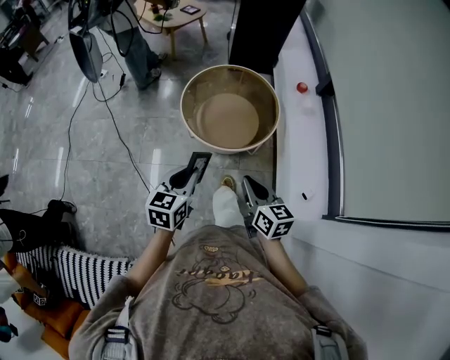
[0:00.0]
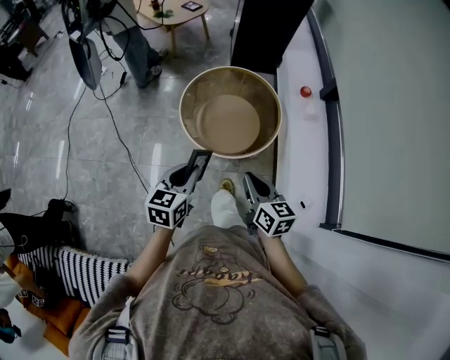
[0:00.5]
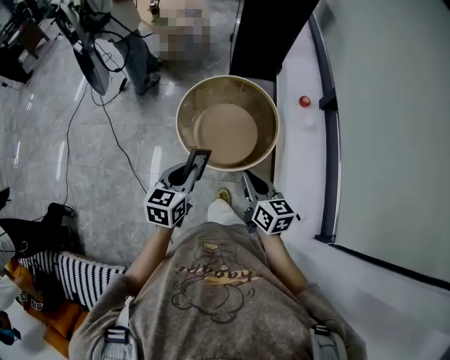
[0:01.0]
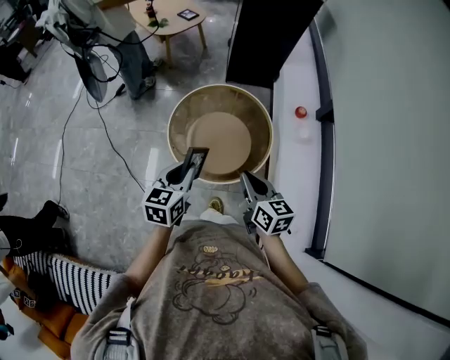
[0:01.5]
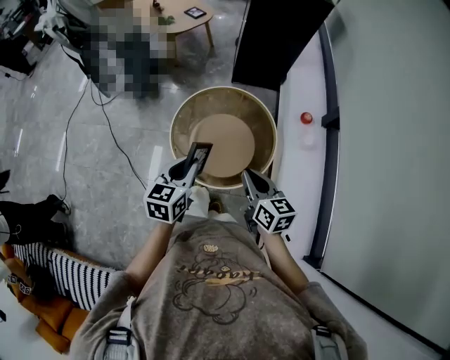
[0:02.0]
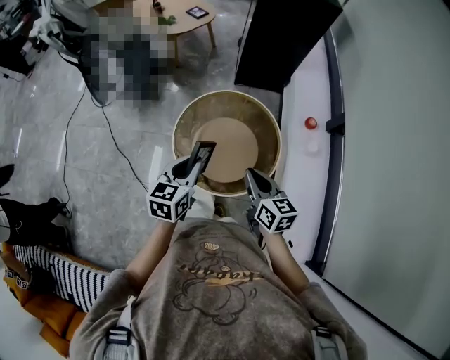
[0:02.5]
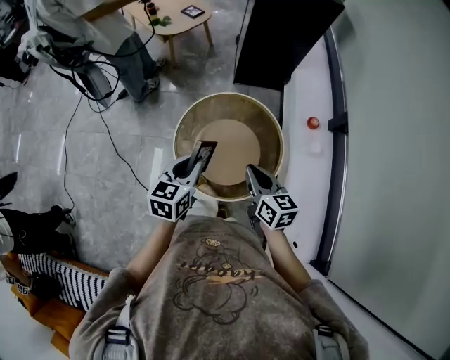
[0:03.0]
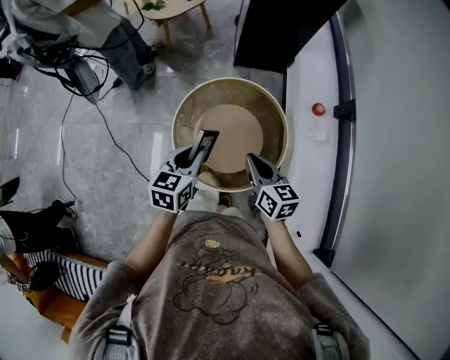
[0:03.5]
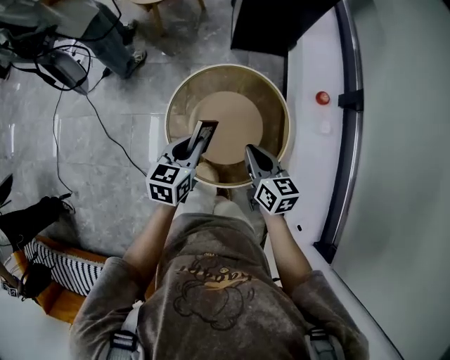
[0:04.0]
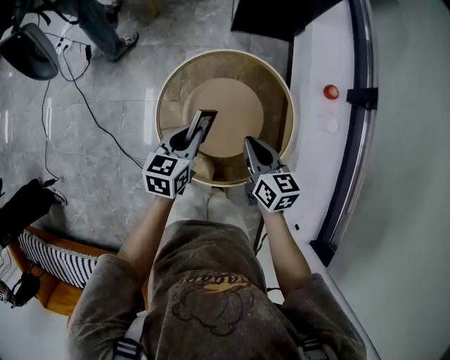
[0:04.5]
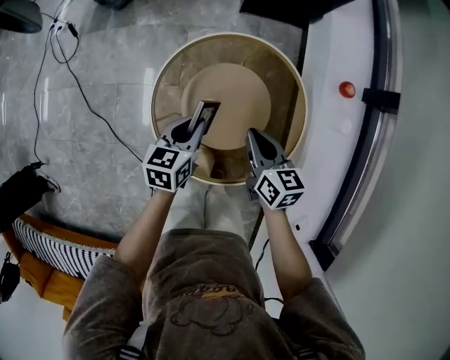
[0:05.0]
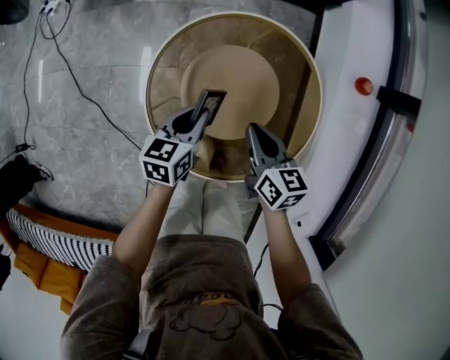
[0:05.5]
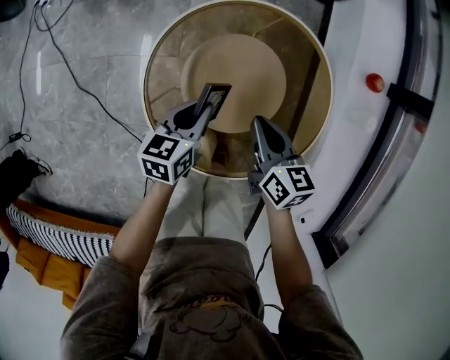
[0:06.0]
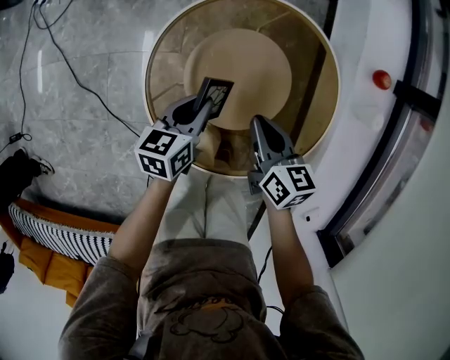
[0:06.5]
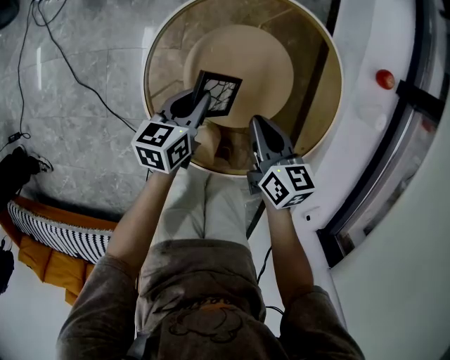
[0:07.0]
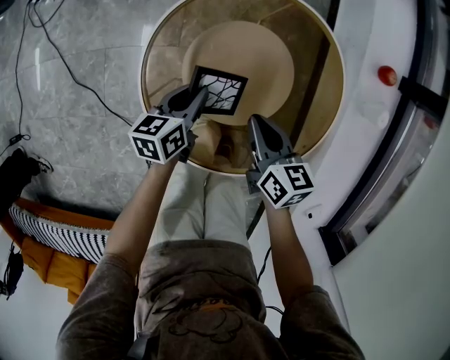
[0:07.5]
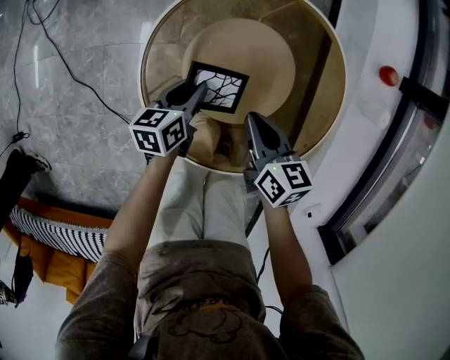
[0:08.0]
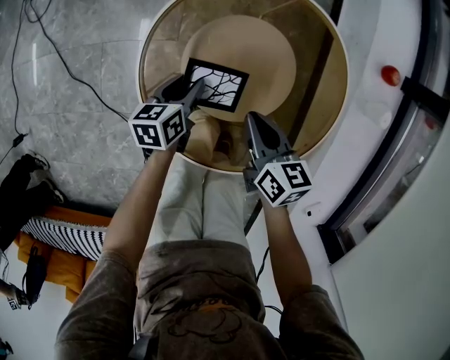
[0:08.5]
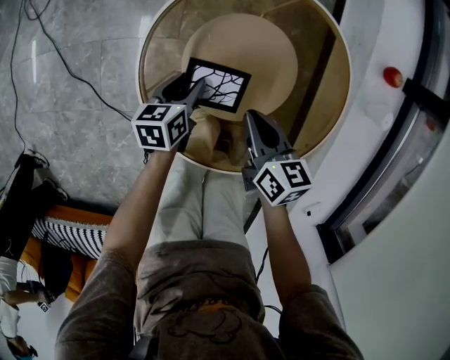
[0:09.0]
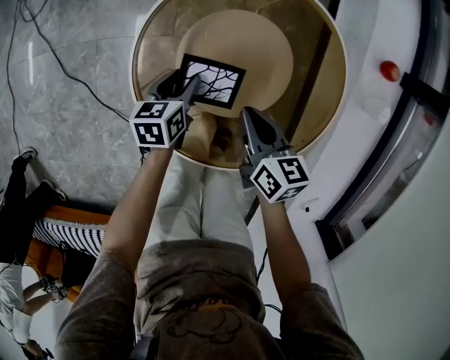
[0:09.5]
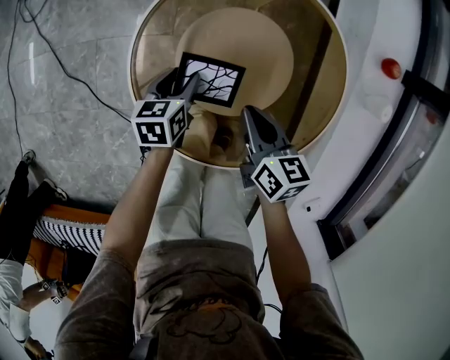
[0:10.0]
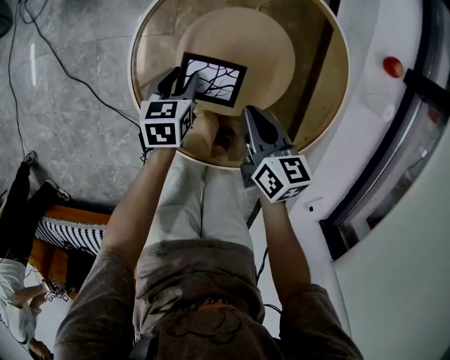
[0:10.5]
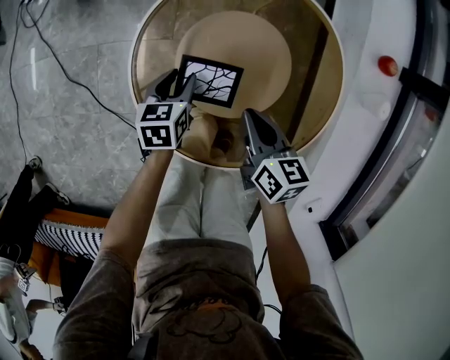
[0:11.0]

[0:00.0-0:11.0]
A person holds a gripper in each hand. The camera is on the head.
0:00.0 to 0:02.0: The two grippers go roughly 25 cm forward.
0:02.0 to 0:03.5: Both grippers move forward and downward, approximately 15 cm.
0:03.5 to 0:05.5: The left gripper shifts about 25 cm downward; the right gripper shifts approximately 25 cm downward and forward.
0:05.5 to 0:07.5: The grippers both shift downward by roughly 5 cm.
0:07.5 to 0:09.0: The left gripper goes some 5 cm downward, and opens up.
0:09.0 to 0:11.0: The grippers stay close to where they were, moving slightly.

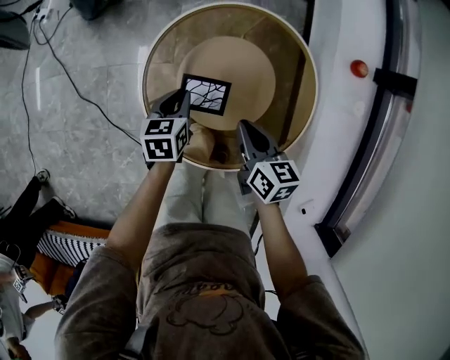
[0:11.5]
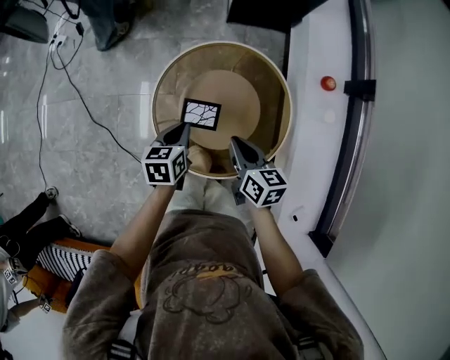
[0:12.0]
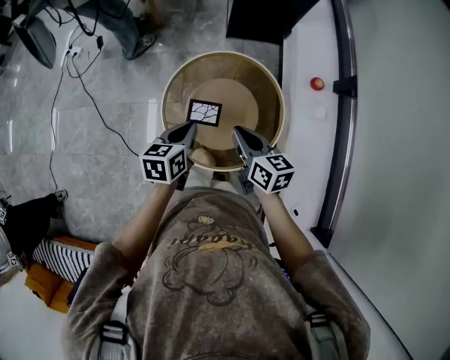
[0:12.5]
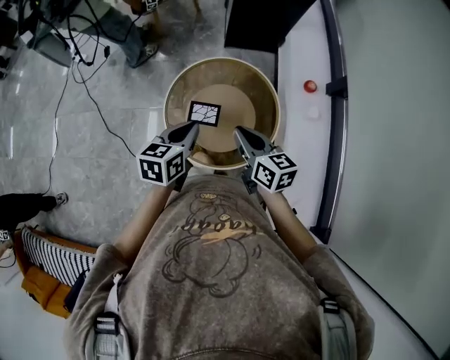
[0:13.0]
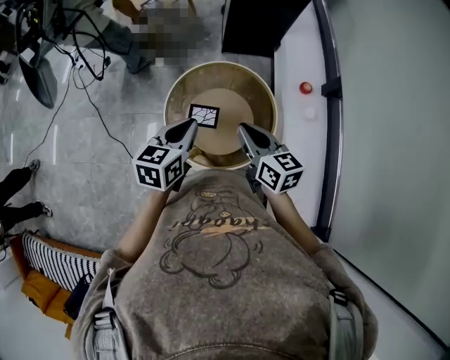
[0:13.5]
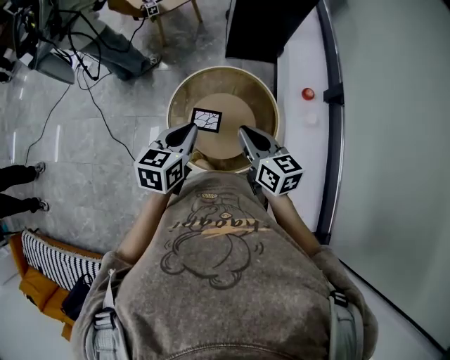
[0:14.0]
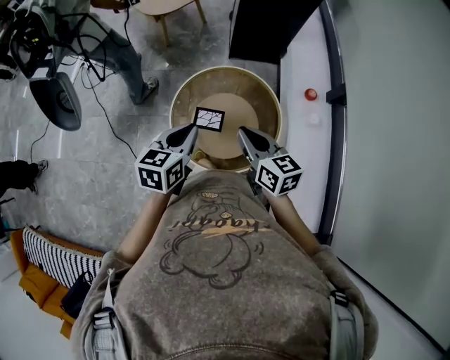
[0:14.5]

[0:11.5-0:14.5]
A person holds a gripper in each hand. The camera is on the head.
0:11.5 to 0:13.0: The left gripper heads upward and backward, covering some 35 cm. The right gripper shifts roughly 25 cm upward.
0:13.0 to 0:14.5: The left gripper shifts by about 5 cm.

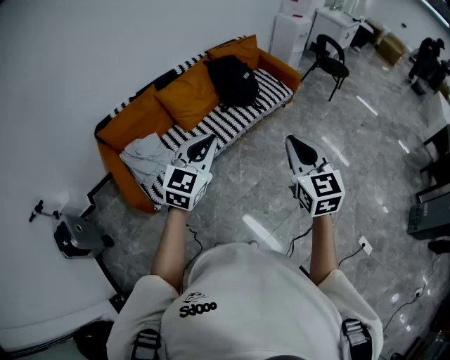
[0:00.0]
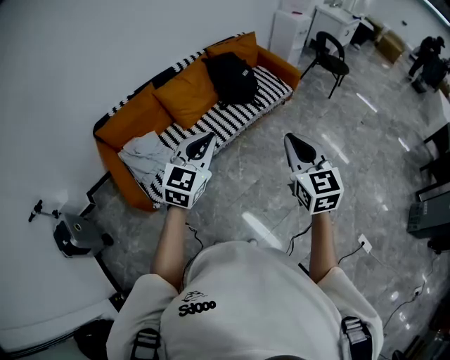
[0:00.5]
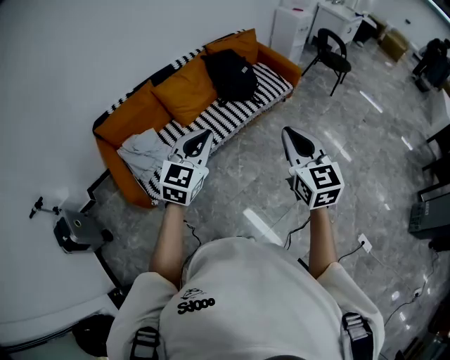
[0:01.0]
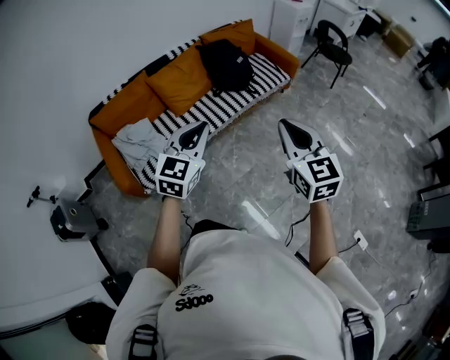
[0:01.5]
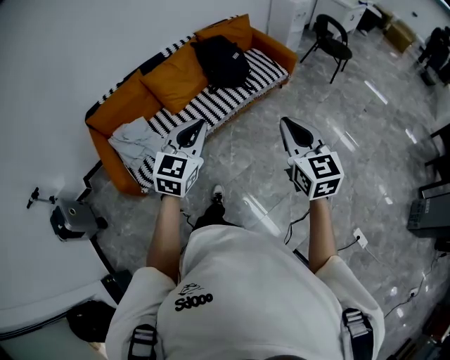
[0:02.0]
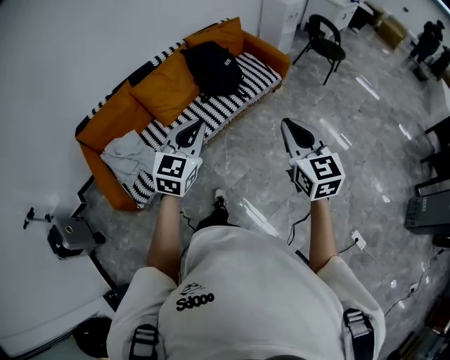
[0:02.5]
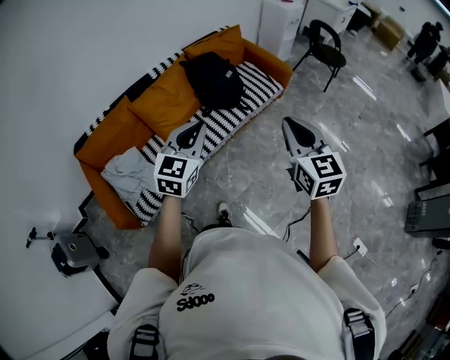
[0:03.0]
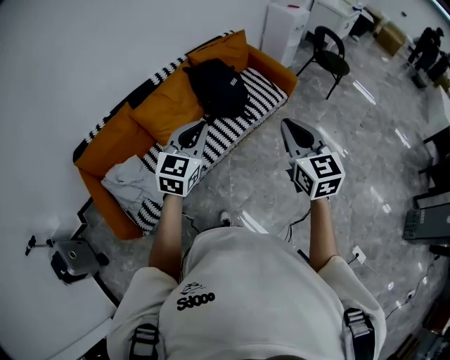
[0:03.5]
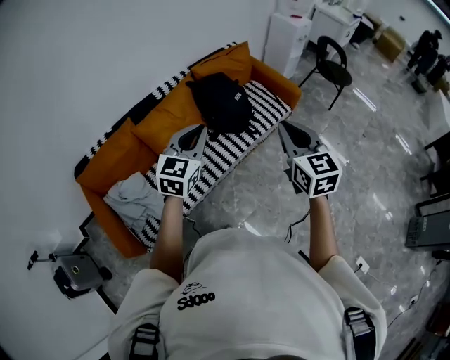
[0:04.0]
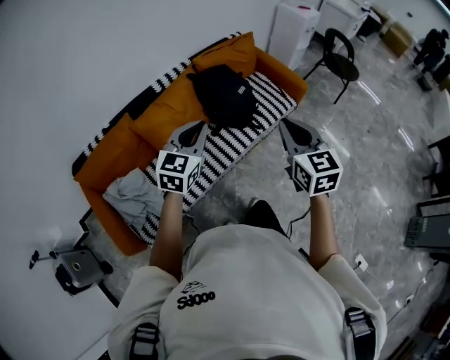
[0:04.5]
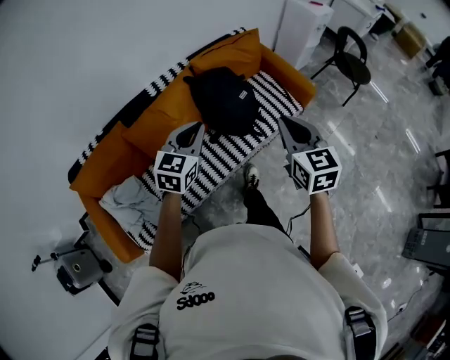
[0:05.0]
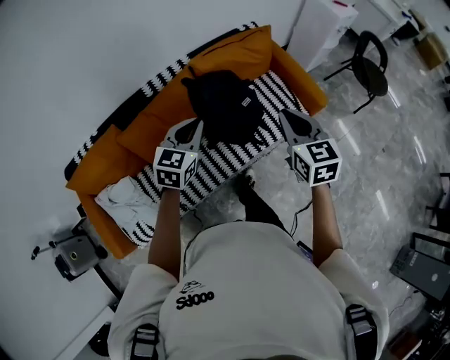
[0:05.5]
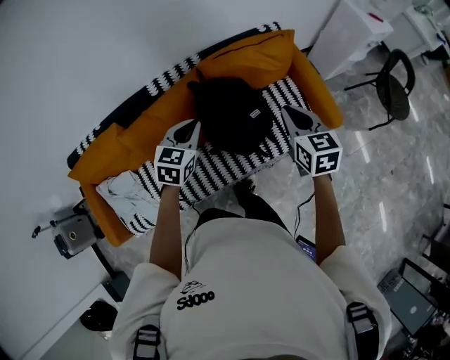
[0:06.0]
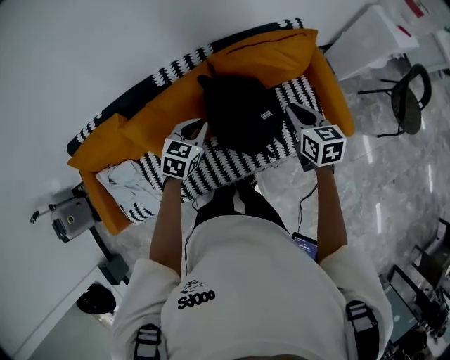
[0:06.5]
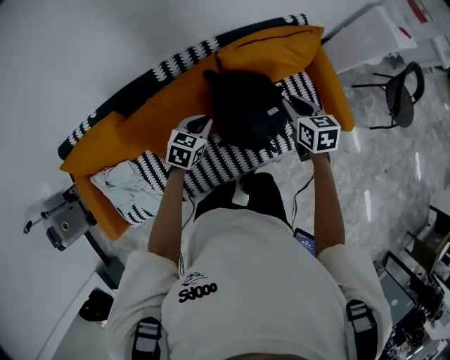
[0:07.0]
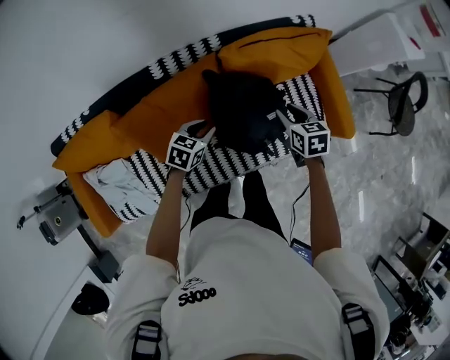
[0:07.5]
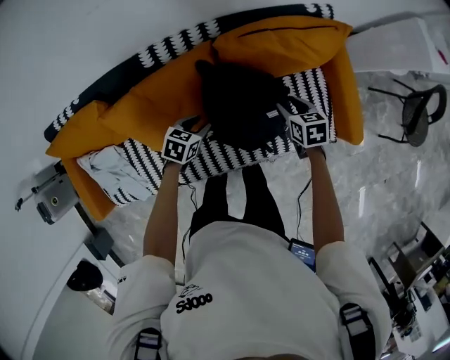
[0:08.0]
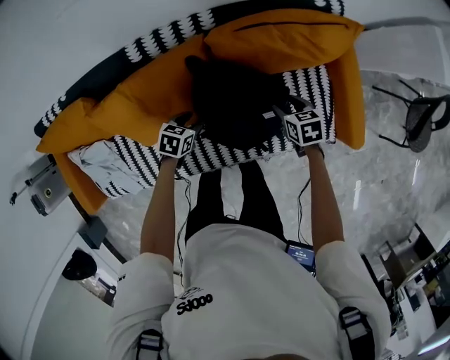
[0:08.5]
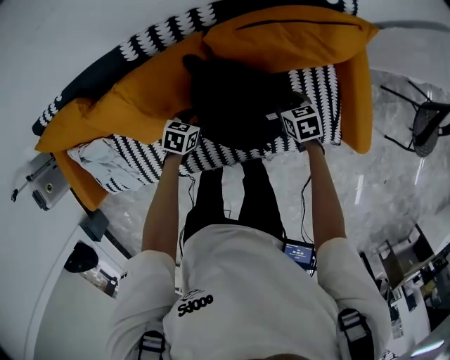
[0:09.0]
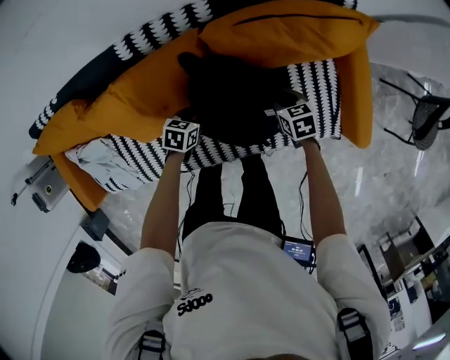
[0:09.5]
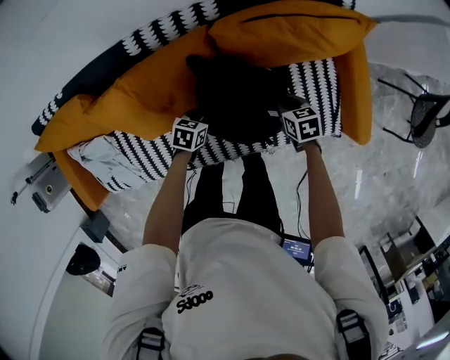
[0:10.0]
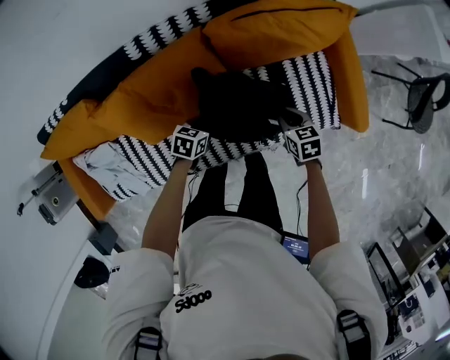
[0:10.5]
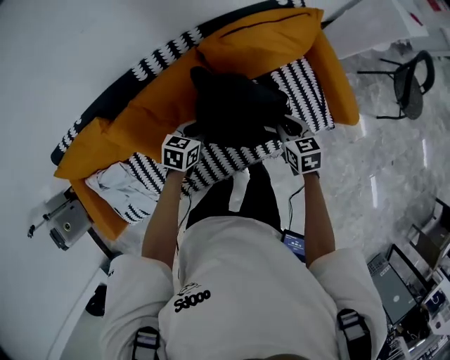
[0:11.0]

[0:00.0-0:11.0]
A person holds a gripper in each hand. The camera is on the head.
0:00.0 to 0:02.0: The two grippers go approximately 15 cm to the right.
0:02.0 to 0:03.5: Both grippers move forward, roughly 30 cm.
0:03.5 to 0:05.5: The pair of grippers is taken forward, about 50 cm.
0:05.5 to 0:07.5: The left gripper travels downward and forward by approximately 30 cm, turns by about 30 degrees, and opens. Meanwhile the right gripper goes roughly 40 cm forward and downward, rotates about 30 degrees, and opens its fingers.
0:07.5 to 0:09.0: The right gripper moves downward and forward, roughly 25 cm, and changes its angle by approximately 20 degrees; the left gripper goes some 20 cm downward, and turns by some 20 degrees.
0:09.0 to 0:11.0: The left gripper is displaced upward by approximately 20 cm, and closes its fingers. Meanwhile the right gripper travels upward and backward by about 25 cm, rotates about 20 degrees, and closes.

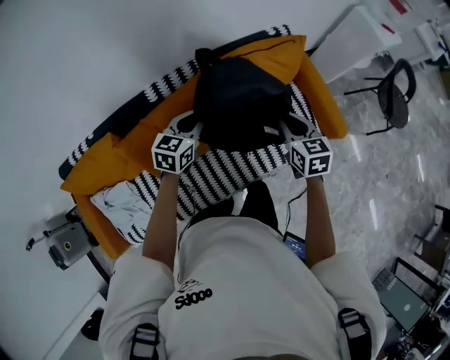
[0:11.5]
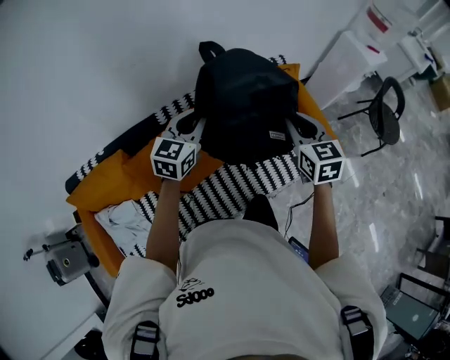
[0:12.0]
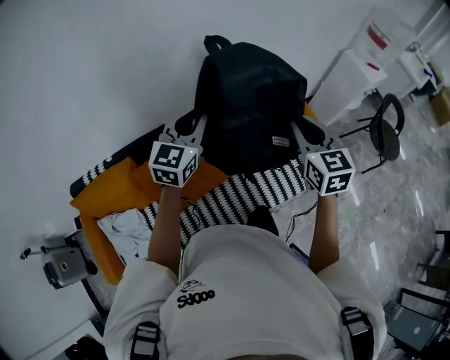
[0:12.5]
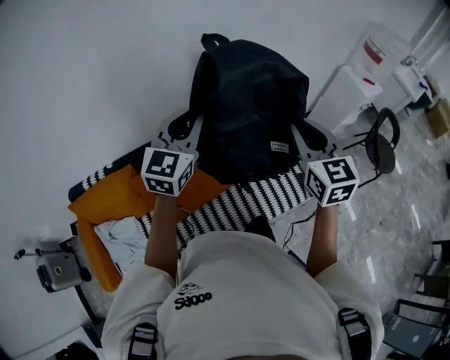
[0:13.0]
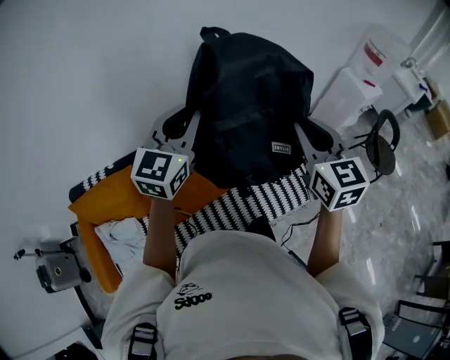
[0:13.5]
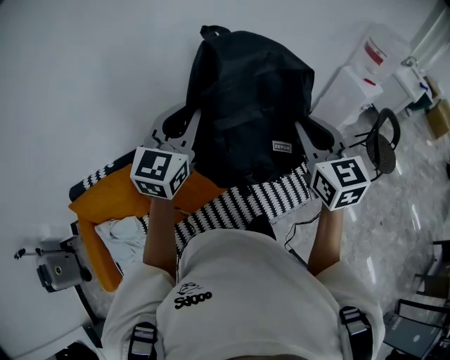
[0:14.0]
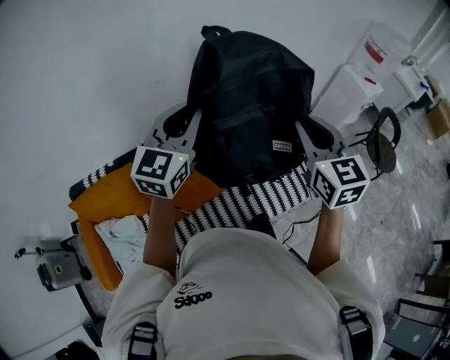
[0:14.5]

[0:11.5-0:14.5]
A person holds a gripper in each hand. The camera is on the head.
0:11.5 to 0:13.0: Both grippers travel together upward, some 30 cm. The right gripper changes its angle by about 30 degrees; the left gripper changes its angle by approximately 30 degrees.
0:13.0 to 0:14.5: The grippers stay close to where they were, moving slightly.
